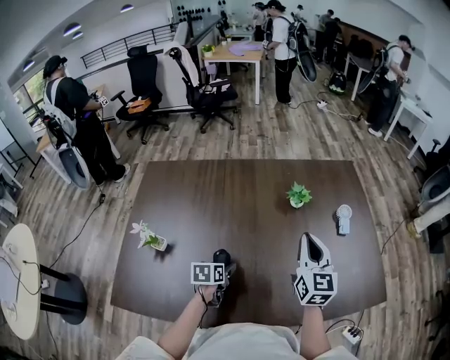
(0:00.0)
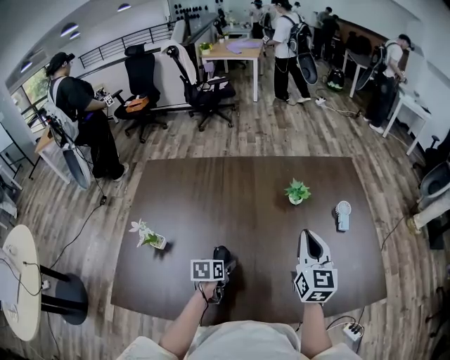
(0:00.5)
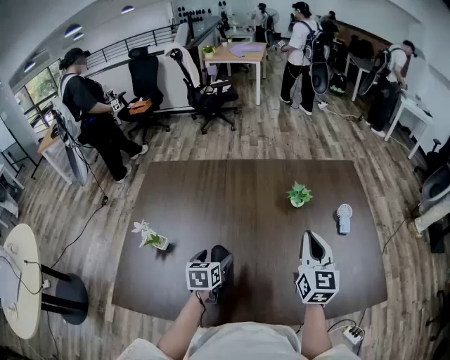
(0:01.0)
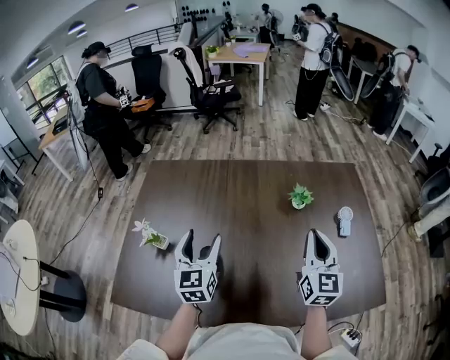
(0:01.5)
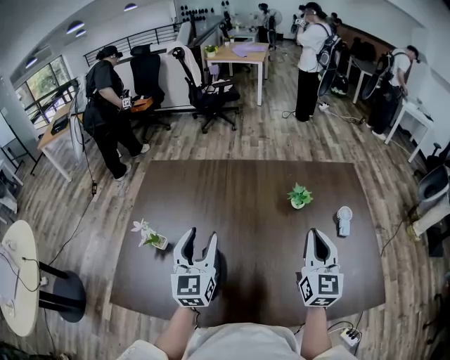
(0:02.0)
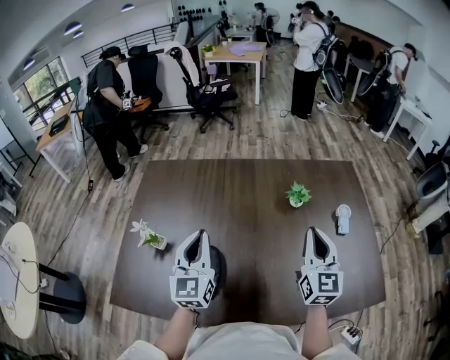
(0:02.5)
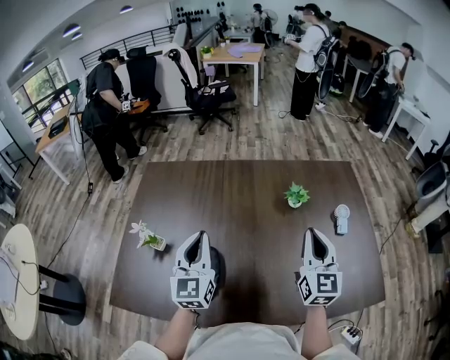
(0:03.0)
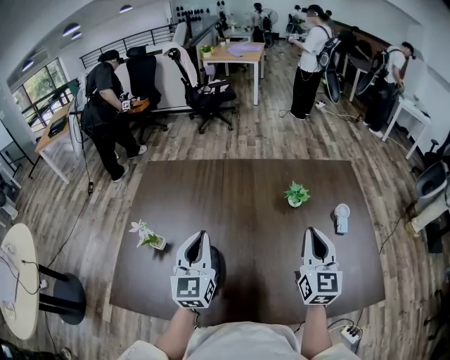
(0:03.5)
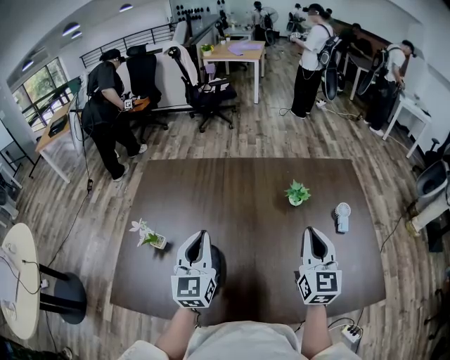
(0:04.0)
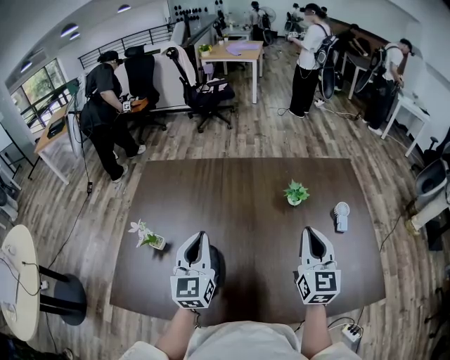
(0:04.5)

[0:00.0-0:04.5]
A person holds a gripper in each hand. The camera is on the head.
0:00.0 to 0:02.0: The left gripper travels upward by roughly 25 cm, and points its fingers about 50 degrees further upward.
0:02.0 to 0:04.5: The left gripper closes.

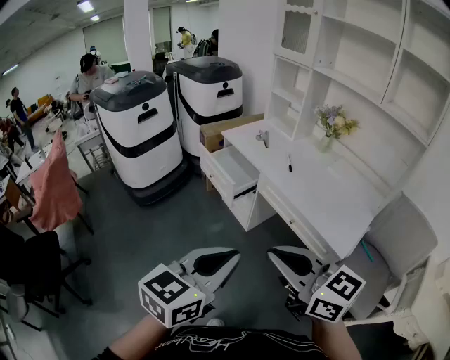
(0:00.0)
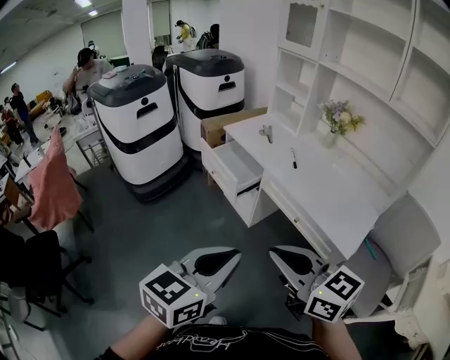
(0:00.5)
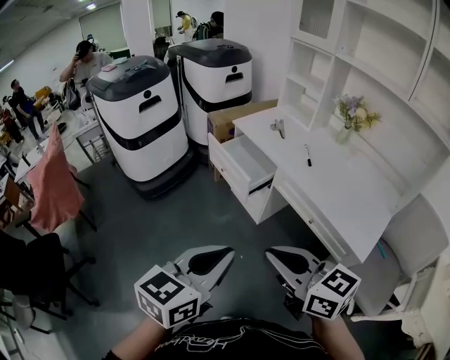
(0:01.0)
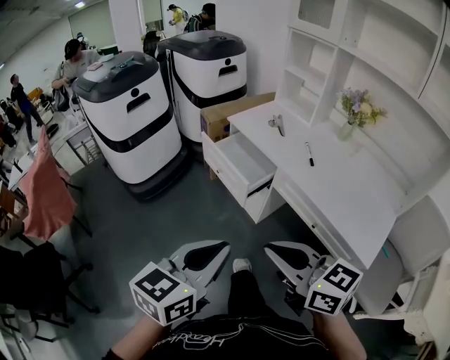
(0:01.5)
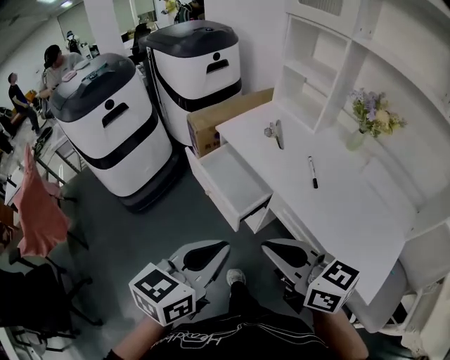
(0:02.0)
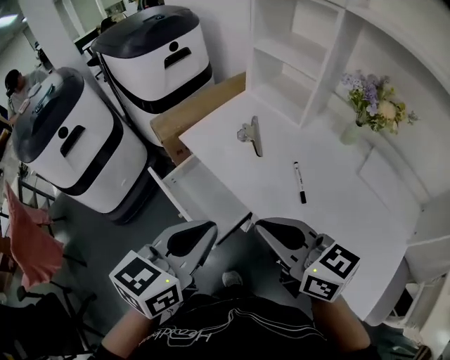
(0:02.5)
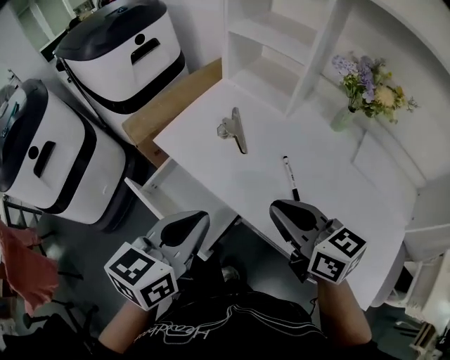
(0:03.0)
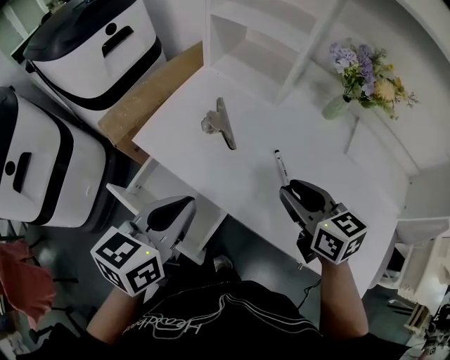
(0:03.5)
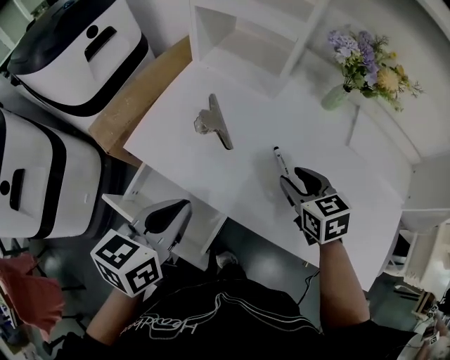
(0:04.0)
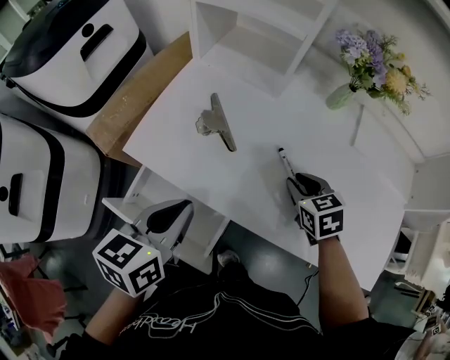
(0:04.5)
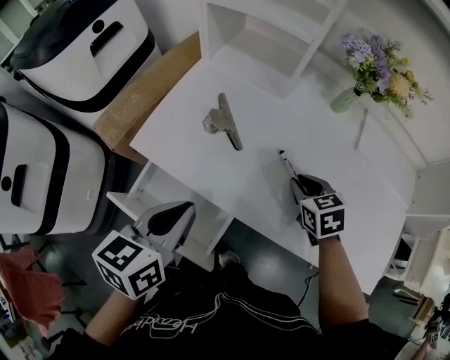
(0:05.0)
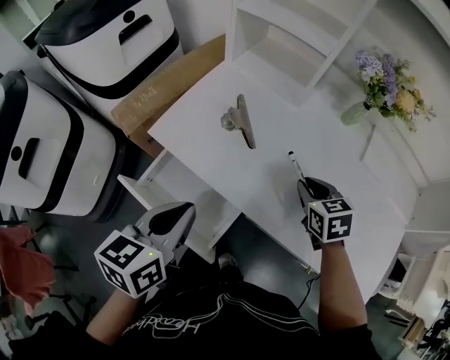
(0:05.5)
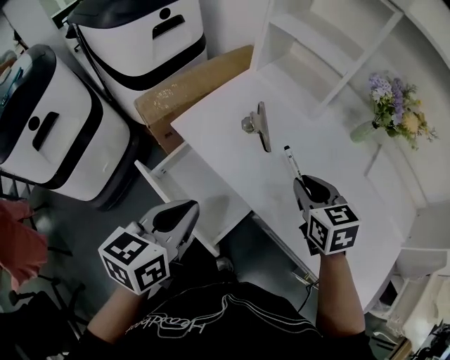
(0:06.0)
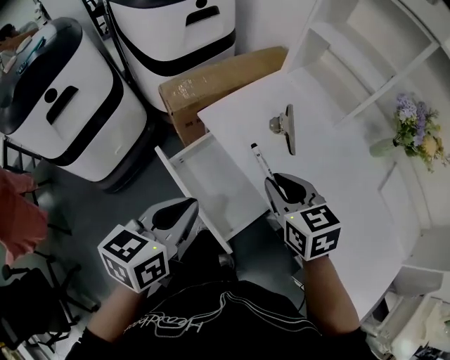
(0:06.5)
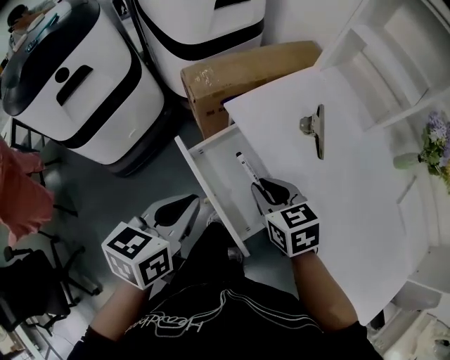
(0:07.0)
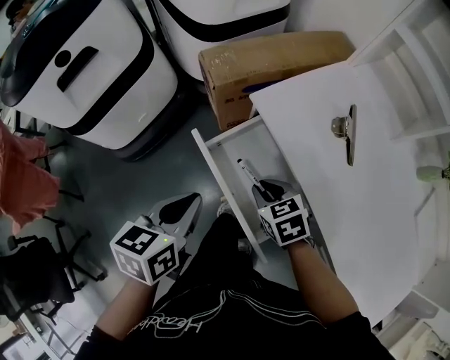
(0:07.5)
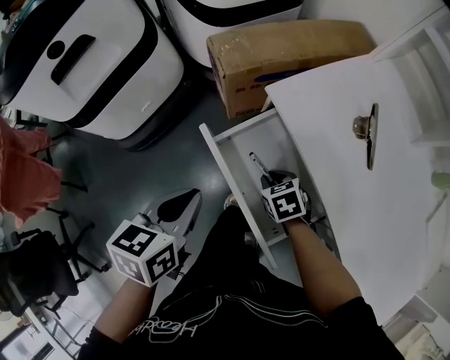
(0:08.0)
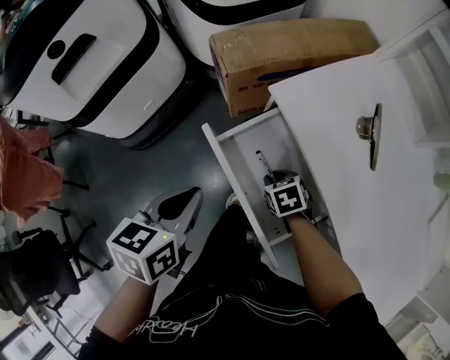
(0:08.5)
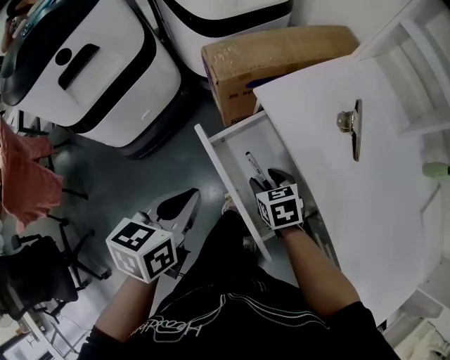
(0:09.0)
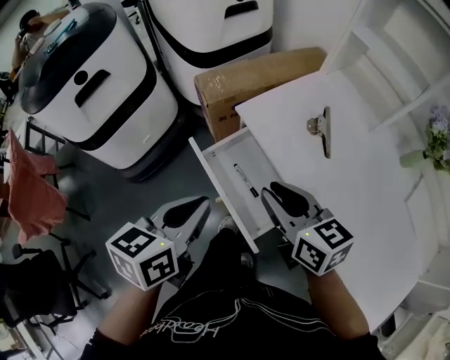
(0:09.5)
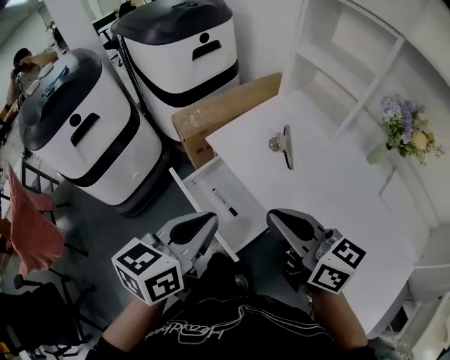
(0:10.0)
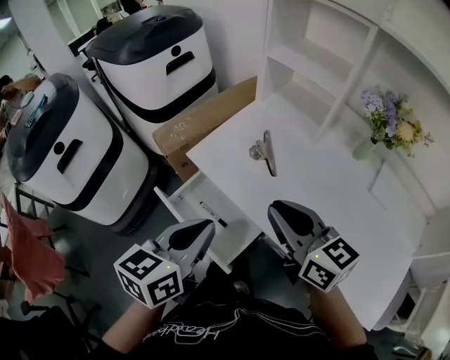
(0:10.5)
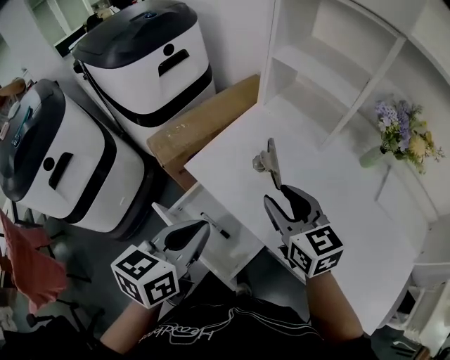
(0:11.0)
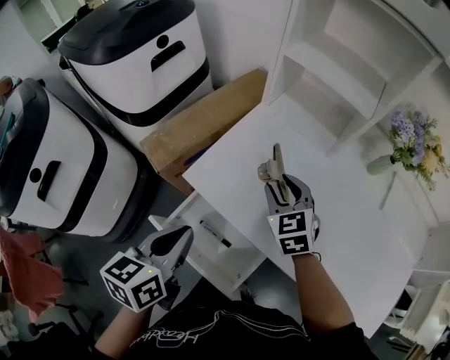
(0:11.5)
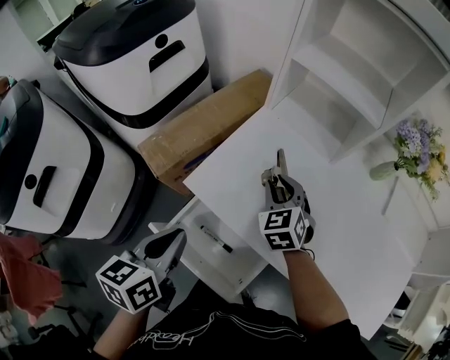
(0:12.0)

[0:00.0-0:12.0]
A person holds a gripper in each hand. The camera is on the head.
0:00.0 to 0:02.0: The grippers both shift forward by approximately 35 cm.
0:02.0 to 0:04.0: The left gripper ends up about 35 cm from where it was, and changes its angle by some 20 degrees; the right gripper ends up about 40 cm from where it was, angles its fingers downward, by about 30 degrees, and opens its fingers.
0:04.0 to 0:06.0: The left gripper is displaced backward by approximately 5 cm, while the right gripper moves to the left and upward, approximately 10 cm.
0:06.0 to 0:08.0: The left gripper shifts by about 25 cm, and changes its angle by approximately 30 degrees; the right gripper heads downward, covering some 30 cm, and changes its angle by about 40 degrees.
0:08.0 to 0:10.0: The right gripper is displaced upward by roughly 40 cm, tilts its fingers some 60 degrees upward, and opens, then closes once more; the left gripper is displaced upward, to the right and backward by about 25 cm, and turns by some 30 degrees.
0:10.0 to 0:12.0: The left gripper changes place by about 20 cm; the right gripper moves about 35 cm, angles its fingers downward, by about 30 degrees, and opens its fingers.

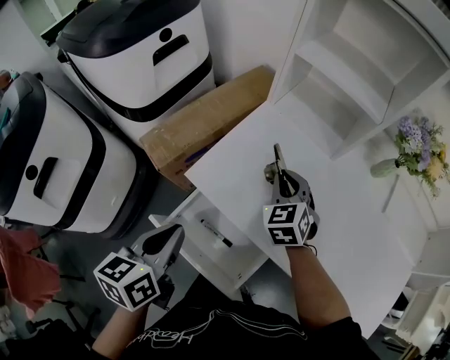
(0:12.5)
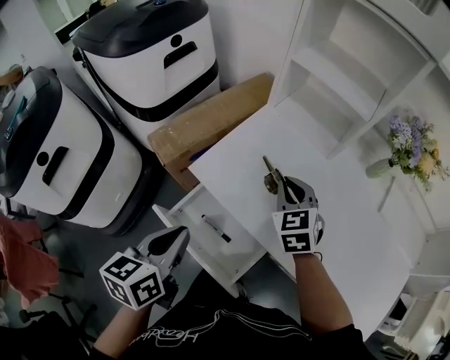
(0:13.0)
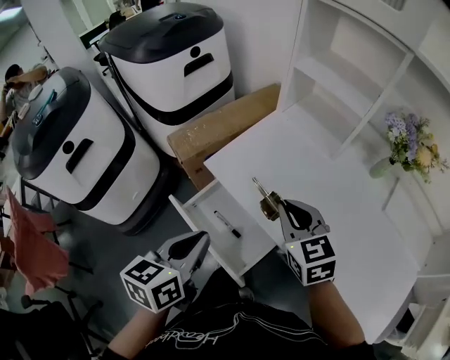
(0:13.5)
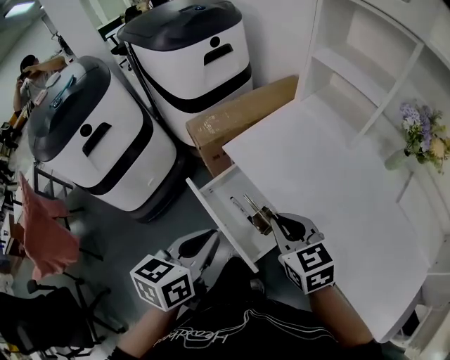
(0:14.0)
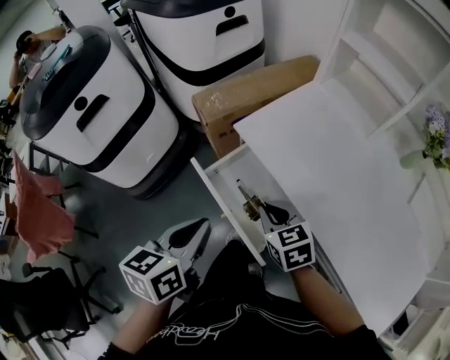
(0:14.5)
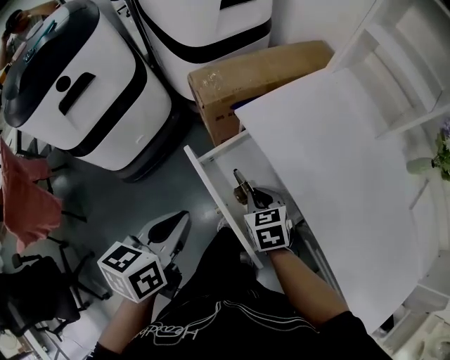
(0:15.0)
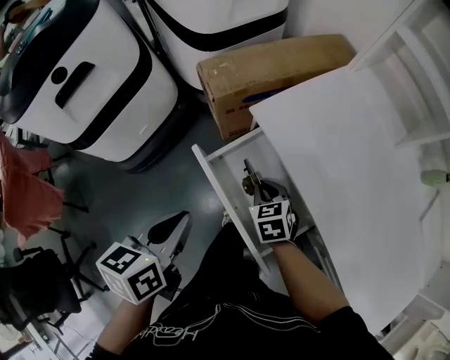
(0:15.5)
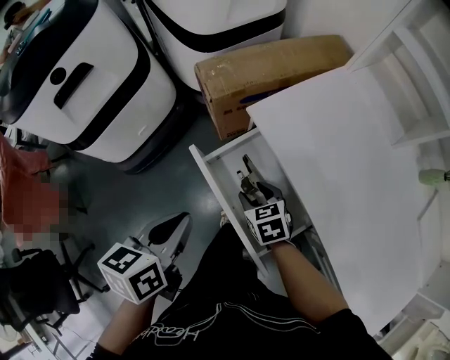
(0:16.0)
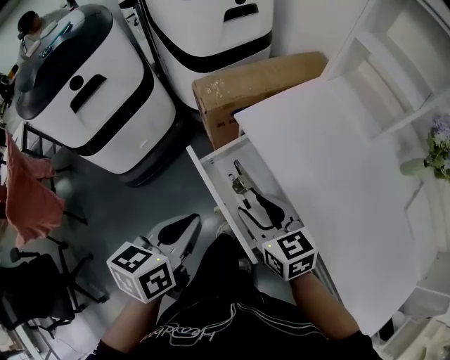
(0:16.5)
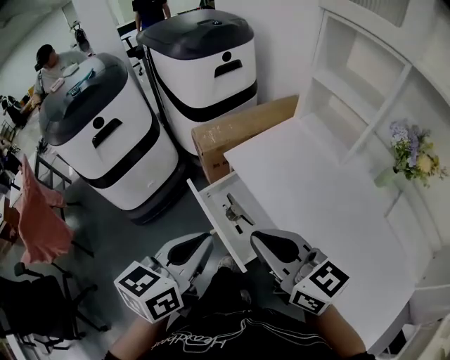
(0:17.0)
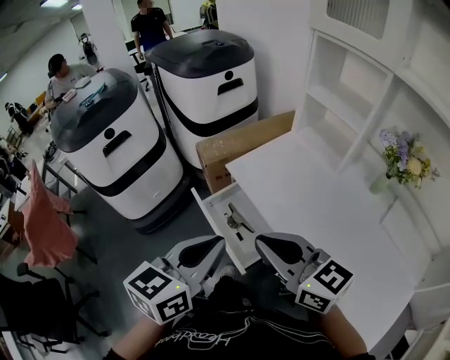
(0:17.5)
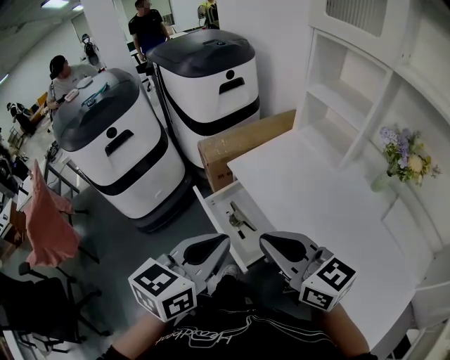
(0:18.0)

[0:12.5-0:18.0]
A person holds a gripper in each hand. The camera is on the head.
0:12.5 to 0:14.5: The left gripper changes place by some 15 cm. Meanwhile the right gripper goes upward and returns, about 10 cm each way, and turns by roughly 40 degrees.
0:14.5 to 0:16.0: The left gripper travels downward and to the left by about 10 cm. The right gripper is displaced downward by roughly 15 cm, and opens its fingers.
0:16.0 to 0:18.0: The right gripper moves upward and backward, roughly 40 cm, tips its fingers upward by about 40 degrees, and closes its fingers, while the left gripper shifts some 30 cm upward, to the right and backward, and rotates roughly 30 degrees.

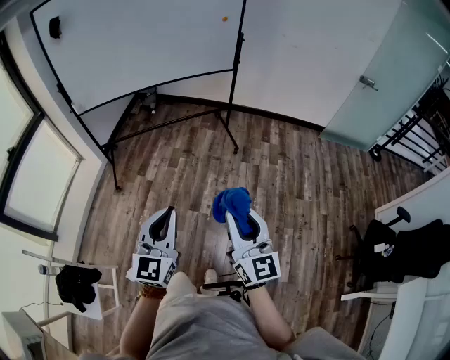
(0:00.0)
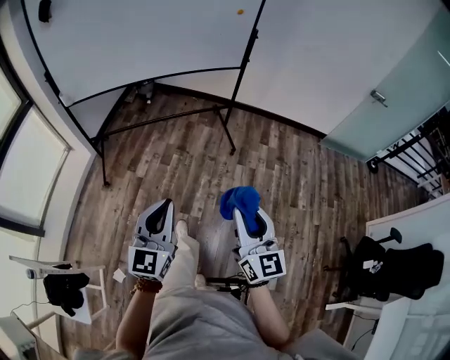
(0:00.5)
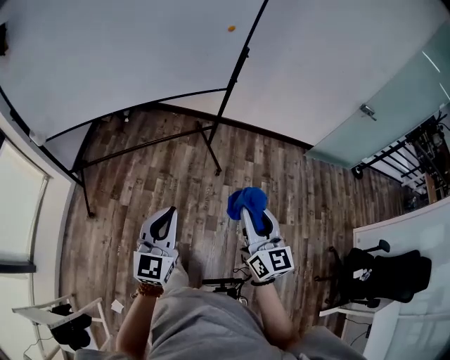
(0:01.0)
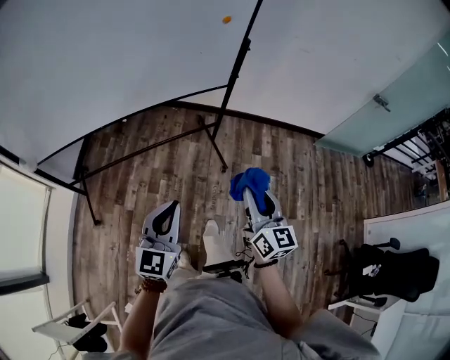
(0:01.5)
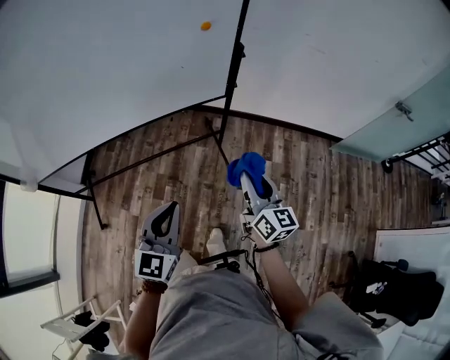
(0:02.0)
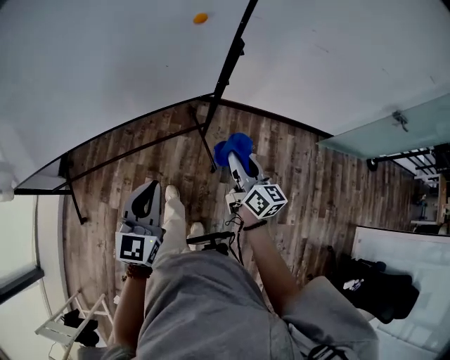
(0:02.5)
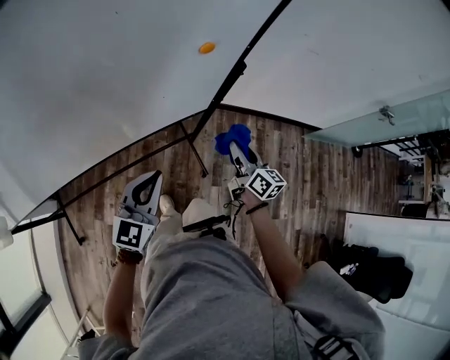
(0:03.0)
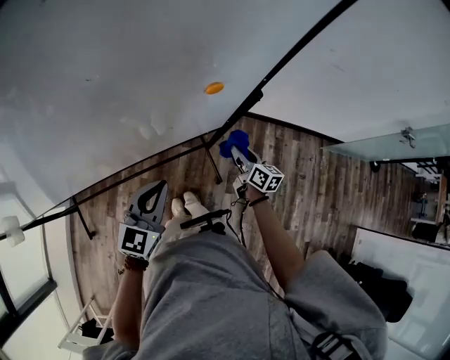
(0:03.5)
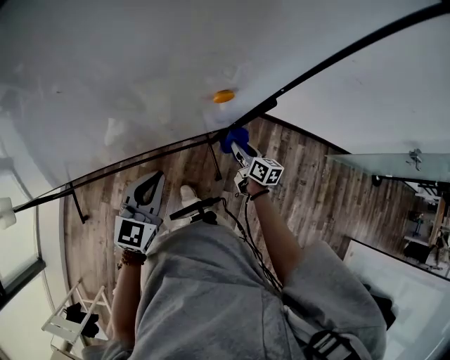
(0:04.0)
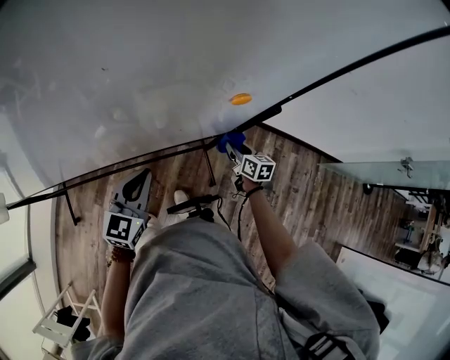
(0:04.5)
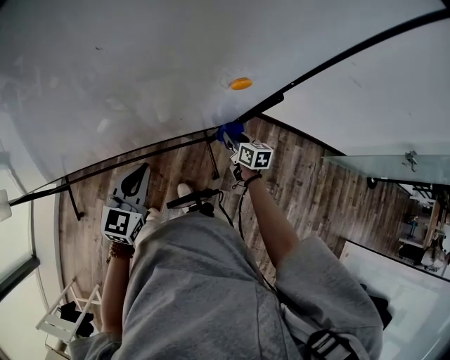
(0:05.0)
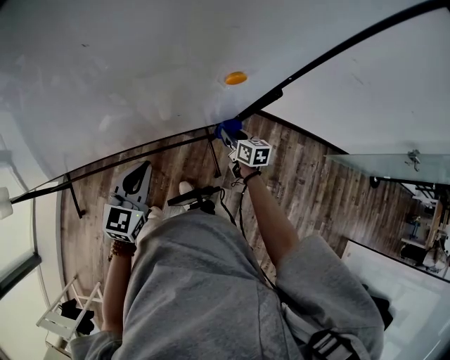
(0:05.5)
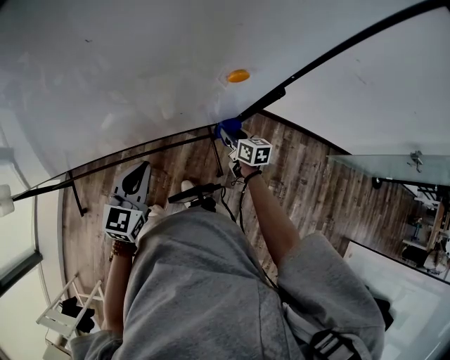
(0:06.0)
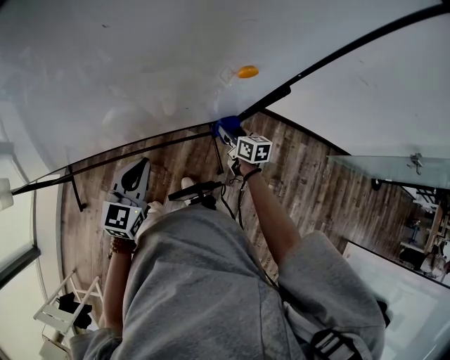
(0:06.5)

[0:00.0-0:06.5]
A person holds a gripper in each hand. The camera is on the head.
0:00.0 to 0:02.0: The two grippers travel together, forward, approximately 70 cm. The right gripper rotates roughly 20 degrees.
0:02.0 to 0:04.5: The right gripper heads forward and downward, covering roughly 50 cm, and swivels approximately 30 degrees; the left gripper shifts some 40 cm forward.
0:04.5 to 0:06.5: The right gripper shifts roughly 5 cm to the left.
